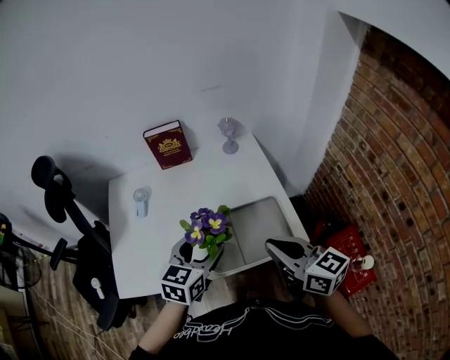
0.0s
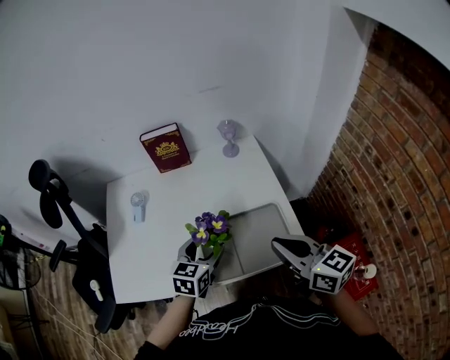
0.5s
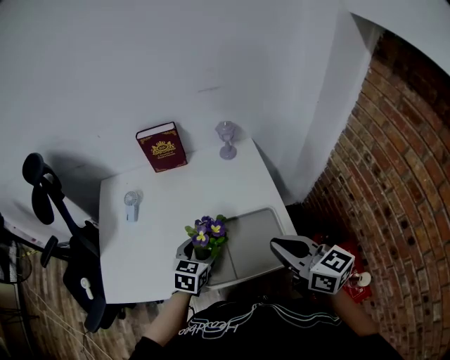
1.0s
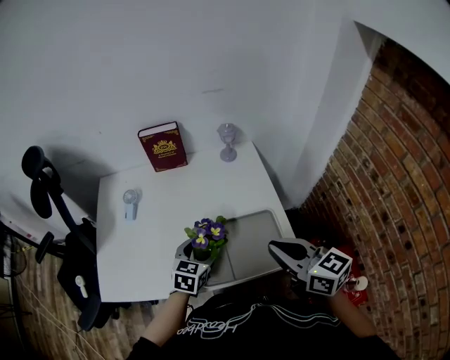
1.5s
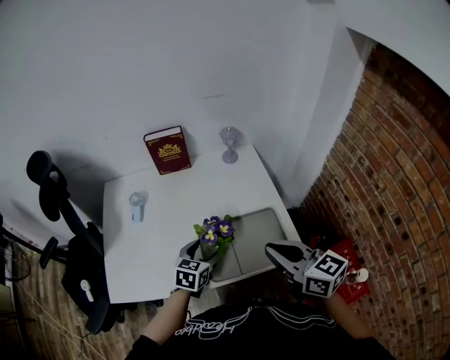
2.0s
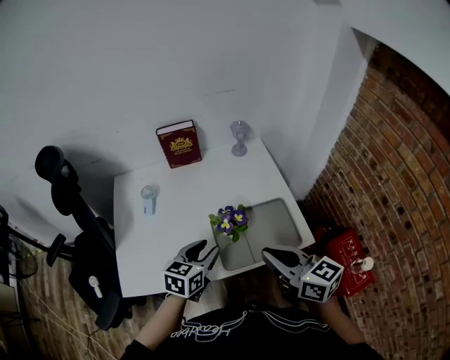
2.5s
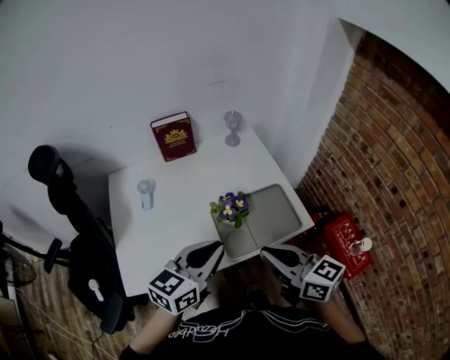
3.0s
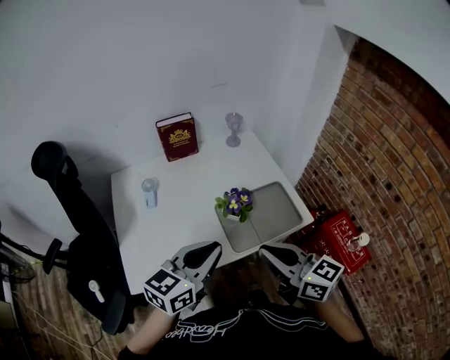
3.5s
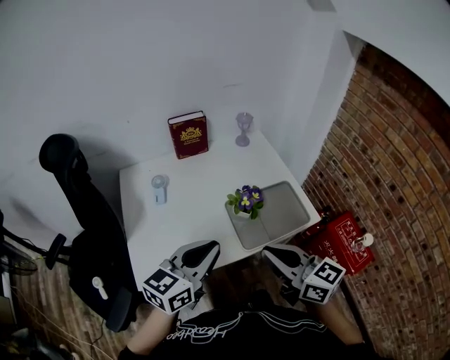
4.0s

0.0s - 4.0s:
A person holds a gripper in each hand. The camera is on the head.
0.0s - 2.0s: The left gripper moves downward, roughly 15 cm.
2.0s - 4.0s: The left gripper shifts some 25 cm upward, backward and to the left, rotates approximately 30 degrees, and closes its fingers; the right gripper heads to the left and backward, covering about 20 cm.

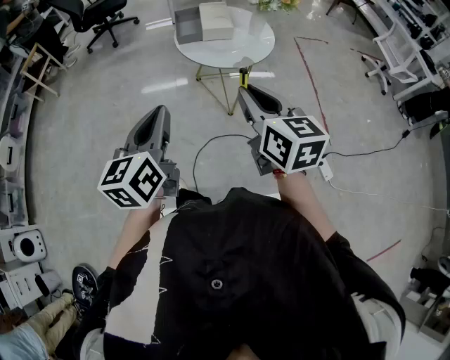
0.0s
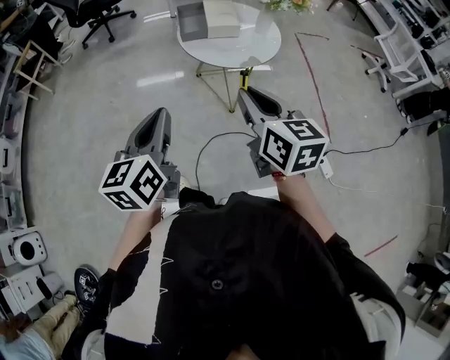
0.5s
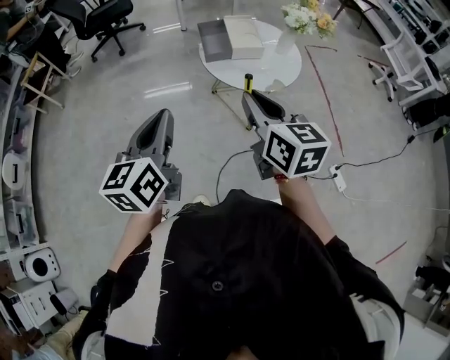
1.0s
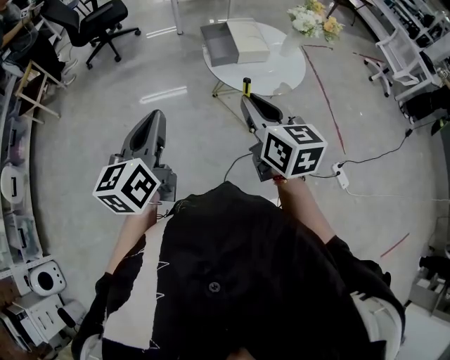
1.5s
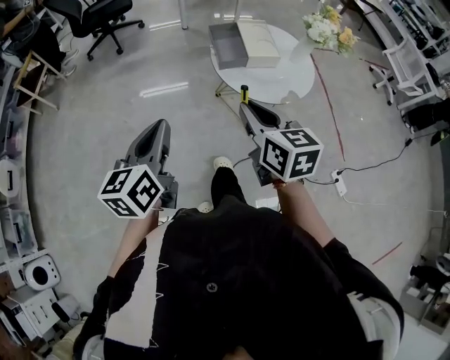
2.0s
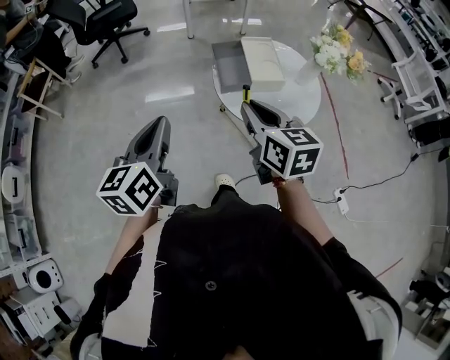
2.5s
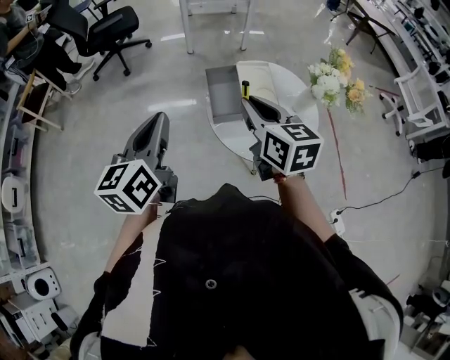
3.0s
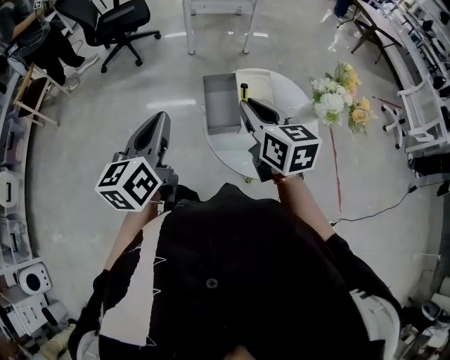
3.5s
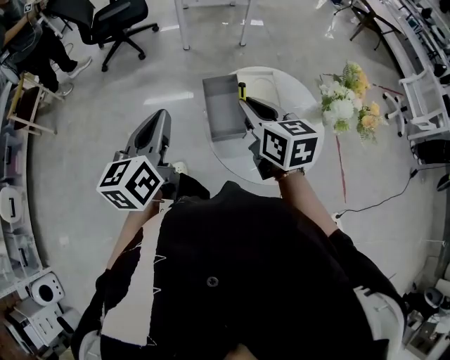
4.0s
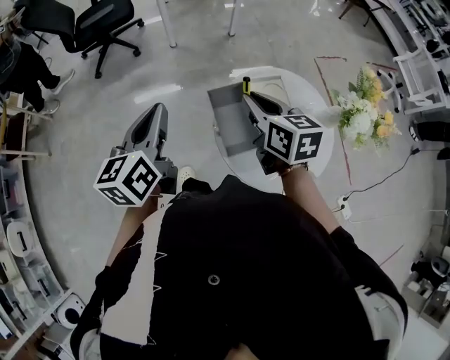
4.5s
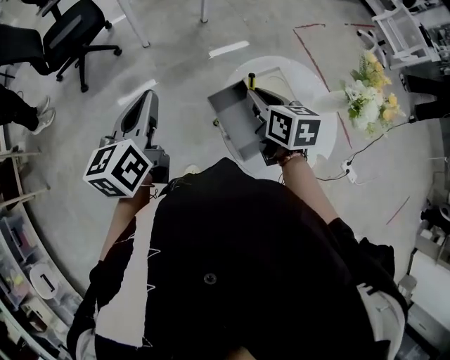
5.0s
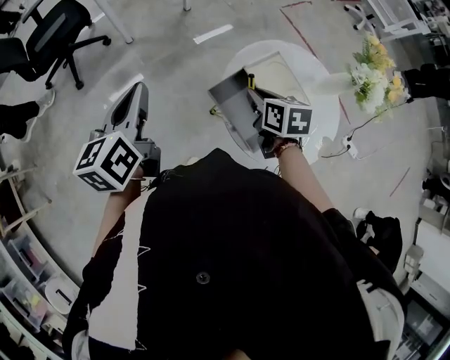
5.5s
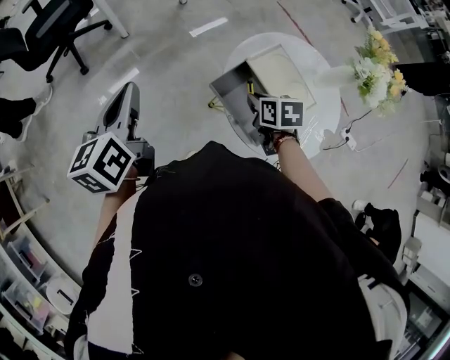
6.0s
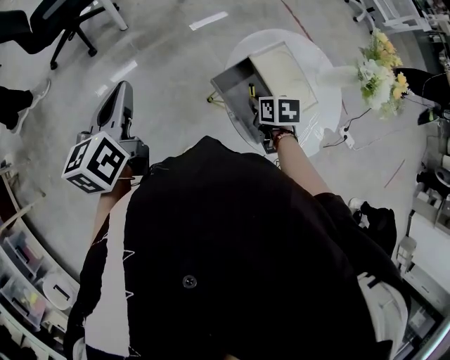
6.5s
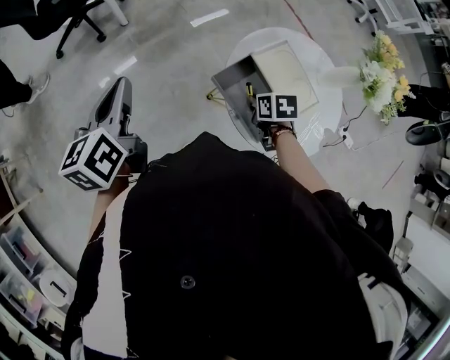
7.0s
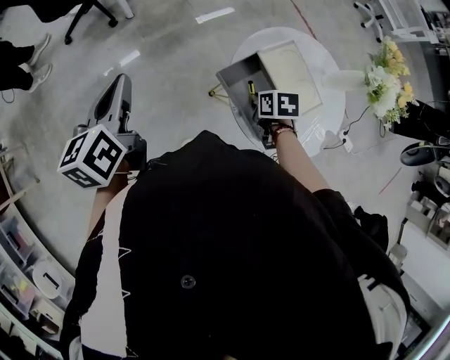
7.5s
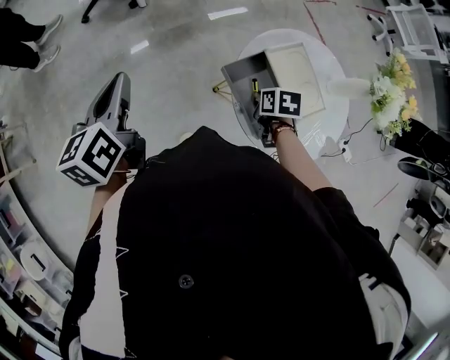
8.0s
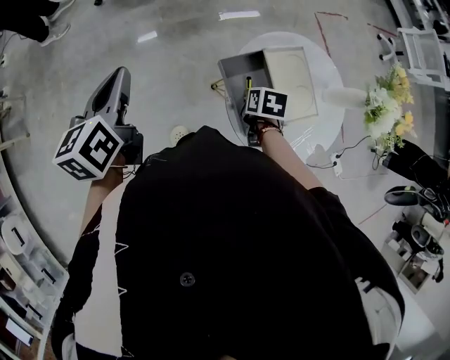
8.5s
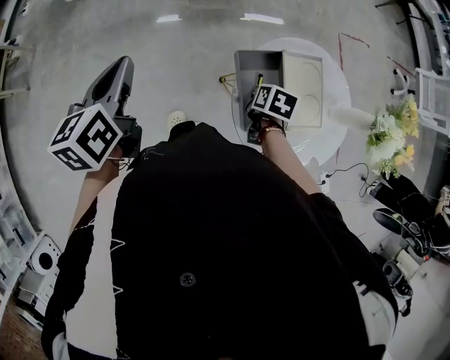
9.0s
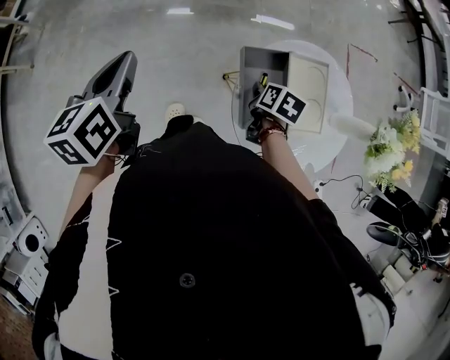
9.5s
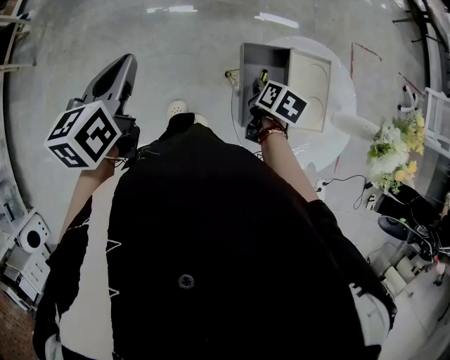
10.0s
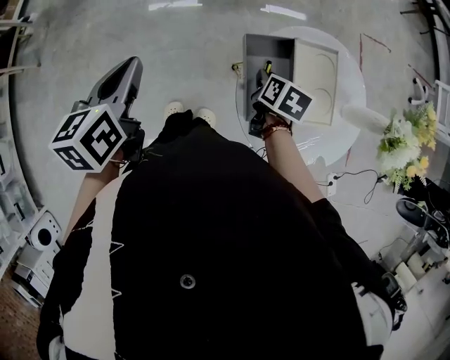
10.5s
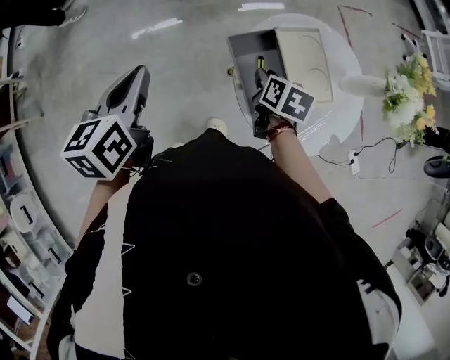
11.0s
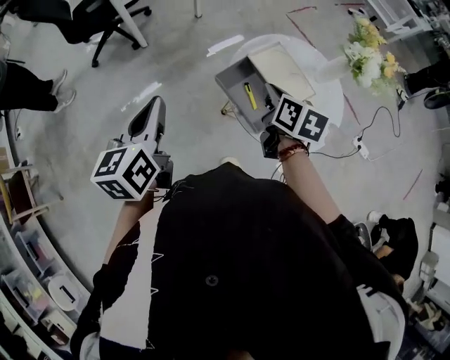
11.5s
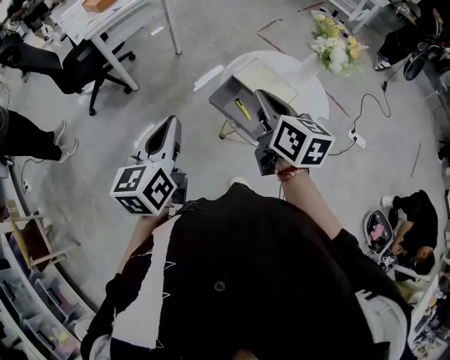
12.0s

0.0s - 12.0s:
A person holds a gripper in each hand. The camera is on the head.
0.0s - 2.0s: The right gripper heads forward and to the left, covering some 25 cm. Meanwhile the left gripper goes approximately 25 cm to the left and forward.
2.0s - 4.0s: The grippers both shift forward by about 30 cm.
4.0s - 6.0s: The left gripper moves some 30 cm, and changes its angle by approximately 30 degrees. The right gripper shifts approximately 20 cm downward, and tilts its fingers about 30 degrees downward.
6.0s - 8.0s: The left gripper moves about 5 cm, while the right gripper shifts roughly 5 cm downward.
8.0s - 10.0s: The left gripper goes some 10 cm backward.
10.0s - 12.0s: The right gripper goes roughly 30 cm upward, tilts its fingers about 40 degrees upward, and closes. Meanwhile the left gripper shifts approximately 10 cm upward, and changes its angle by approximately 50 degrees.

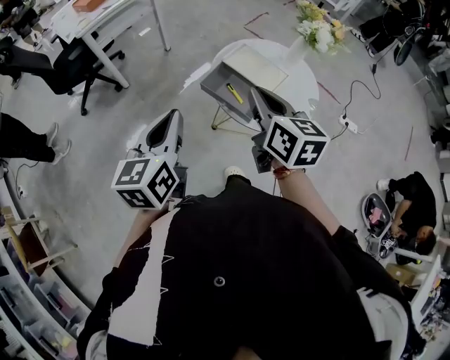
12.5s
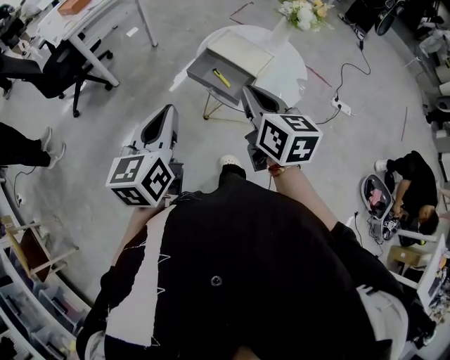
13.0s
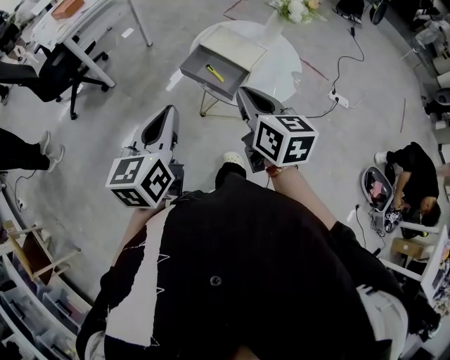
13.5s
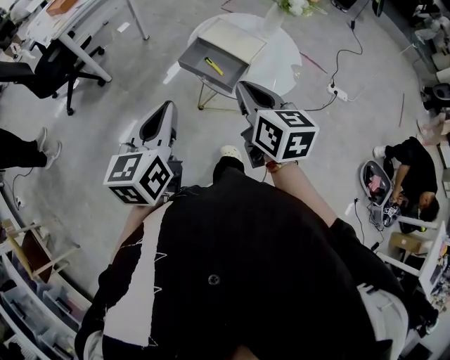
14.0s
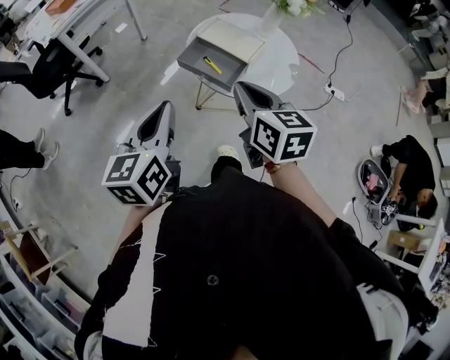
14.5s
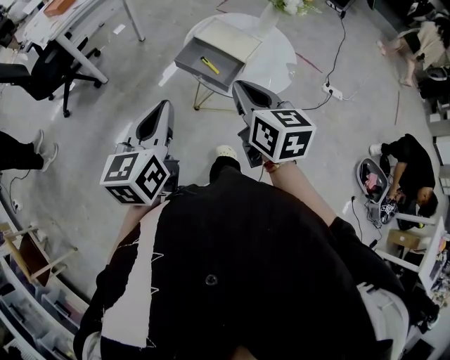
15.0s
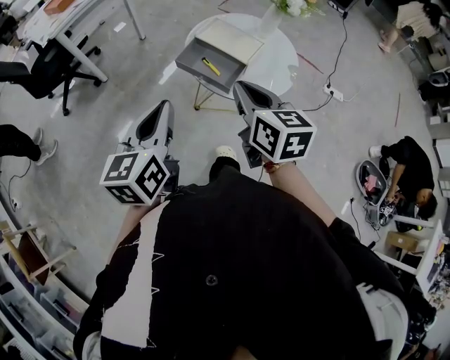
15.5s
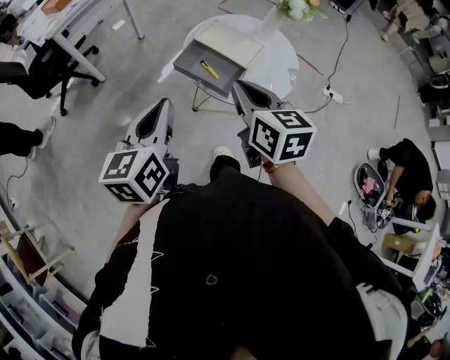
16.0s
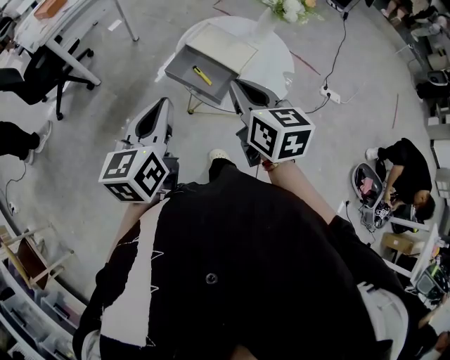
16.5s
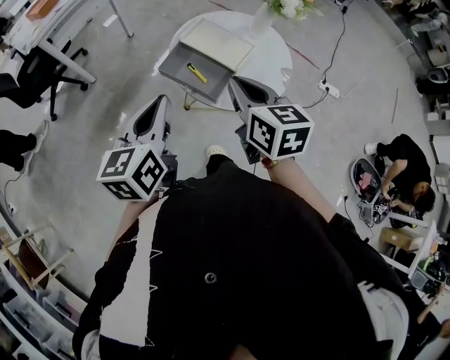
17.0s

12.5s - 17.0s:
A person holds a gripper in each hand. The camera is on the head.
12.5s - 14.5s: The two grippers go roughly 5 cm backward.
14.5s - 17.0s: The grippers both shift forward by roughly 10 cm.

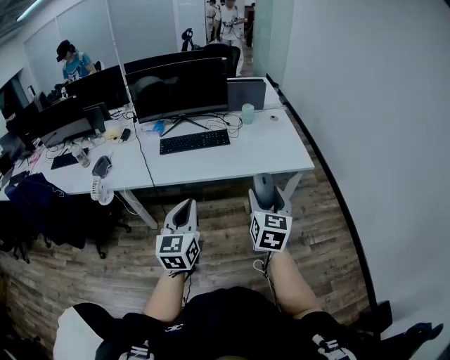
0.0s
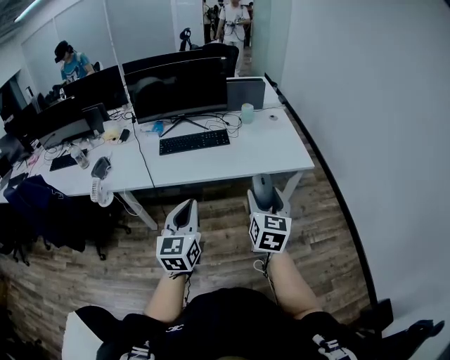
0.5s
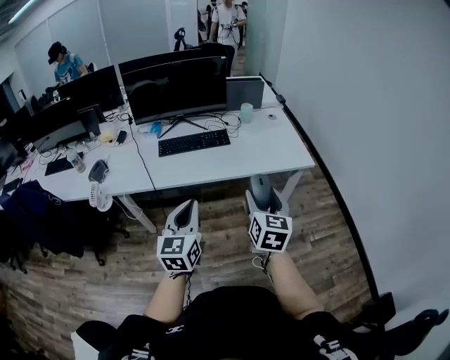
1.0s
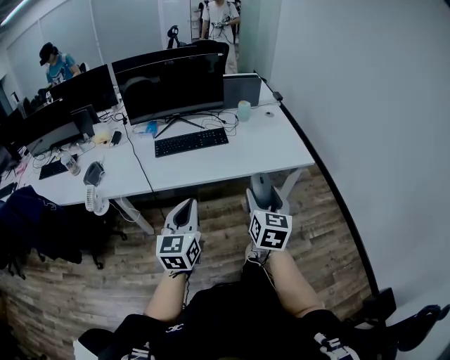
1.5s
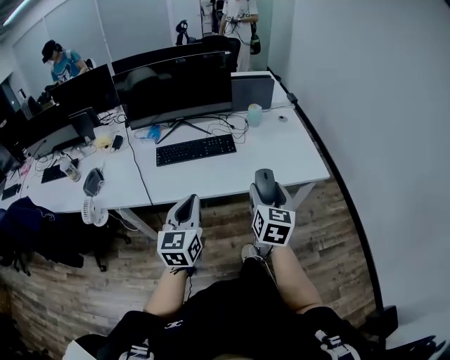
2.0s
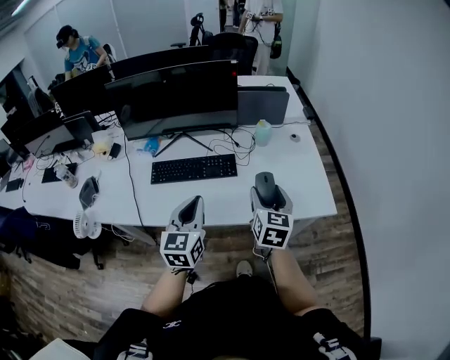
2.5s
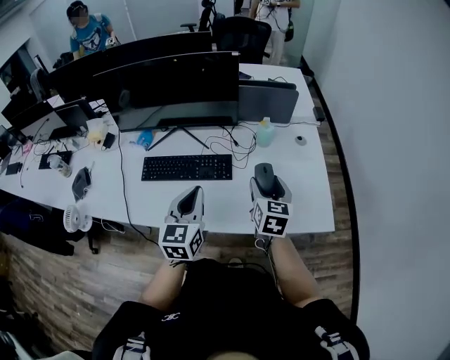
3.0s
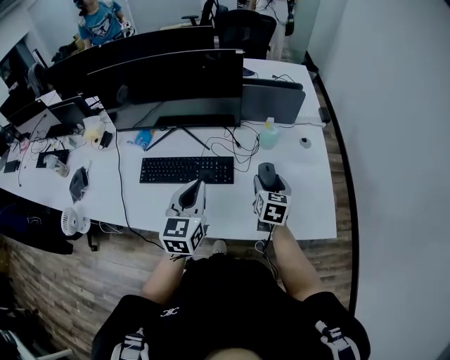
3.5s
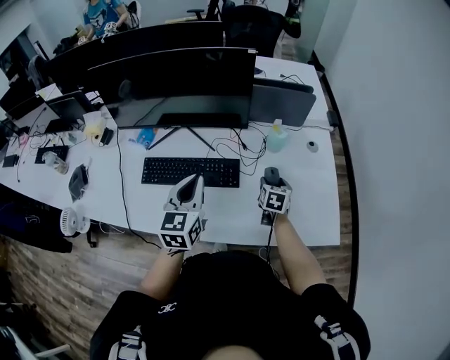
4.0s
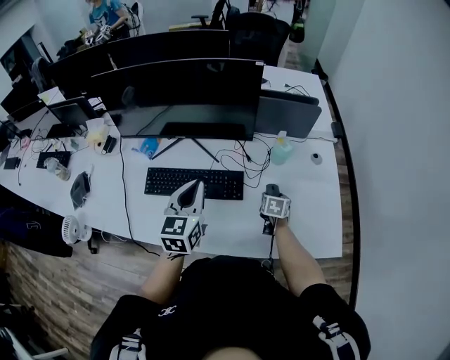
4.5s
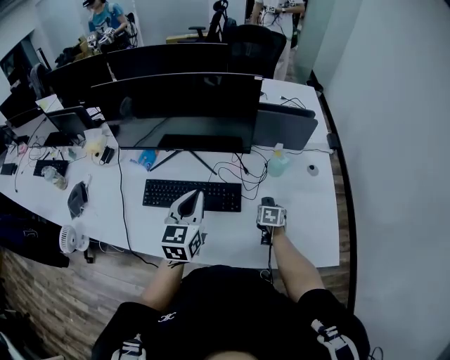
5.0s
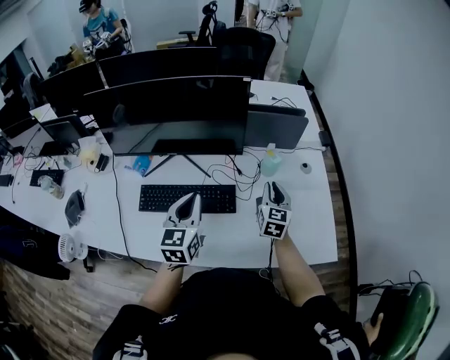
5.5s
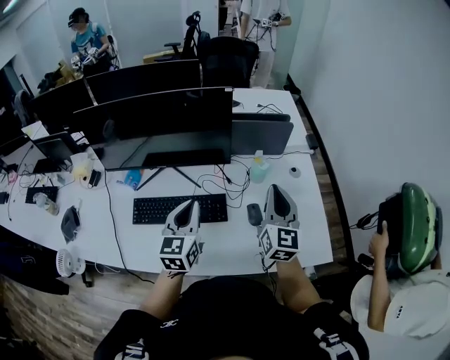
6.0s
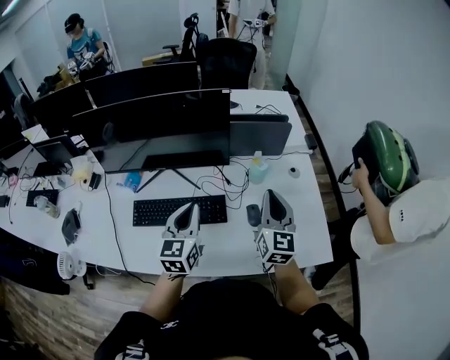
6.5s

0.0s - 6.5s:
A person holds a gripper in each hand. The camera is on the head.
0.0s - 2.0s: The two grippers go some 20 cm forward.
2.0s - 4.5s: The pair of grippers is taken forward, about 50 cm. The right gripper heads downward, covering some 30 cm, and angles its fingers downward, by roughly 30 degrees.
4.5s - 6.5s: The right gripper travels upward by roughly 30 cm, points its fingers roughly 50 degrees further upward, and closes.
